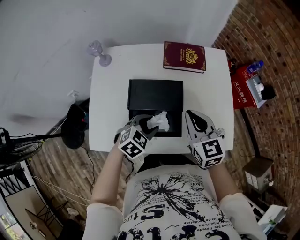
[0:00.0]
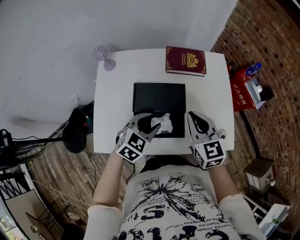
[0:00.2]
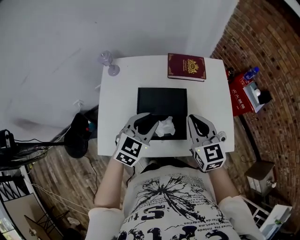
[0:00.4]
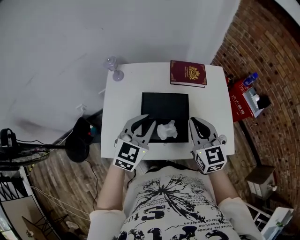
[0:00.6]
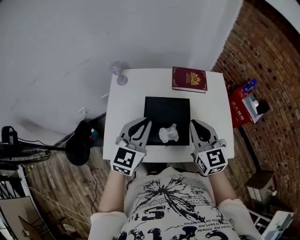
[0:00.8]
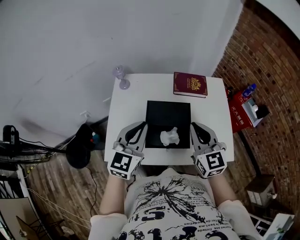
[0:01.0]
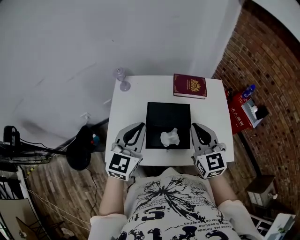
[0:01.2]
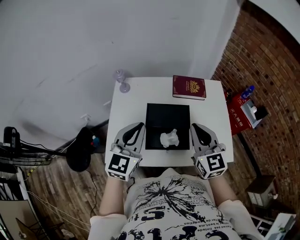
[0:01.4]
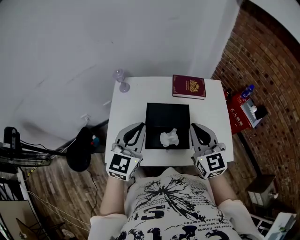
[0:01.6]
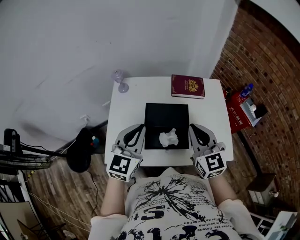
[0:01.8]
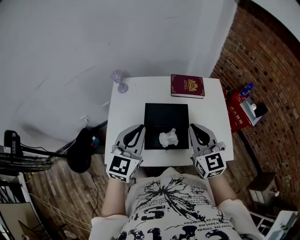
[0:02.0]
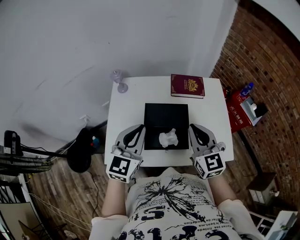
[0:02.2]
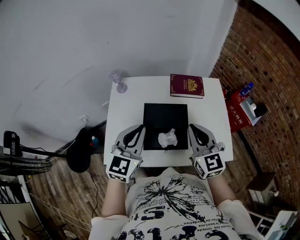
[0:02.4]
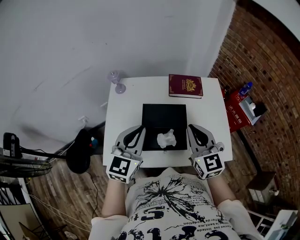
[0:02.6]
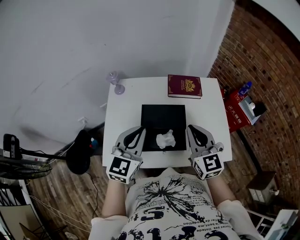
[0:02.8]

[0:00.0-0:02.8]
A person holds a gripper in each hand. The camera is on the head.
0:00.0 to 0:01.4: The left gripper travels upward and to the left by approximately 30 cm, angles its fingers upward, by approximately 40 degrees, and closes. Meanwhile the right gripper shifts roughly 15 cm upward and backward.
0:01.4 to 0:02.8: The grippers make only small movements.

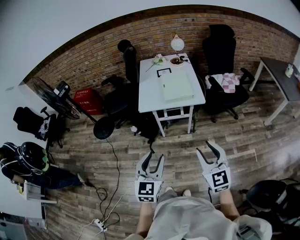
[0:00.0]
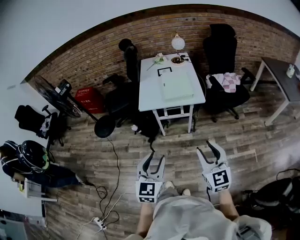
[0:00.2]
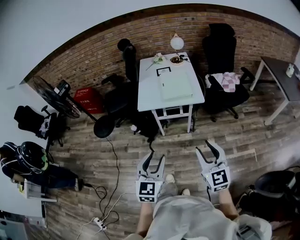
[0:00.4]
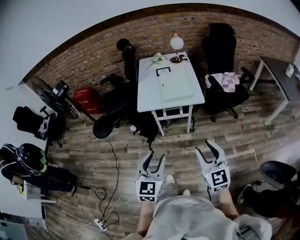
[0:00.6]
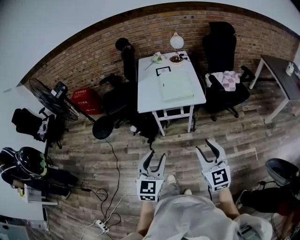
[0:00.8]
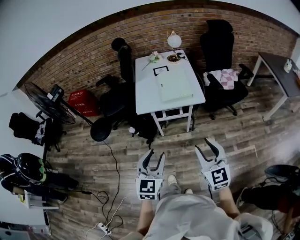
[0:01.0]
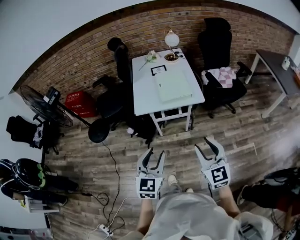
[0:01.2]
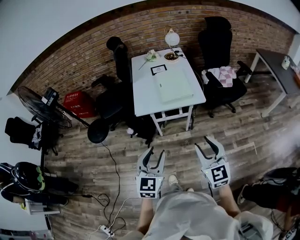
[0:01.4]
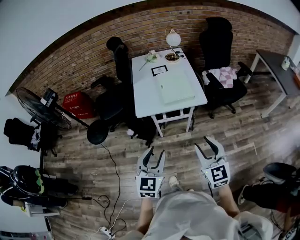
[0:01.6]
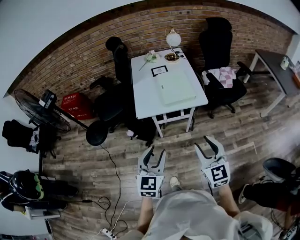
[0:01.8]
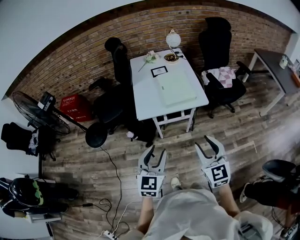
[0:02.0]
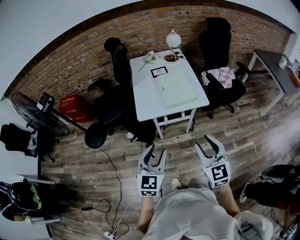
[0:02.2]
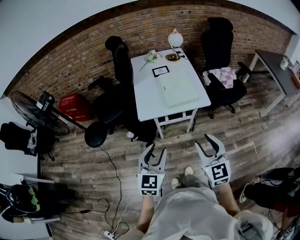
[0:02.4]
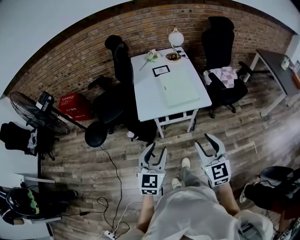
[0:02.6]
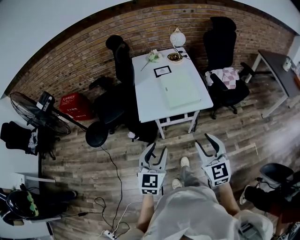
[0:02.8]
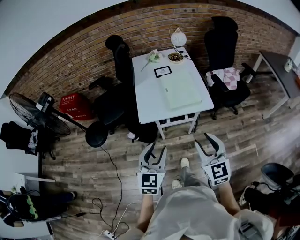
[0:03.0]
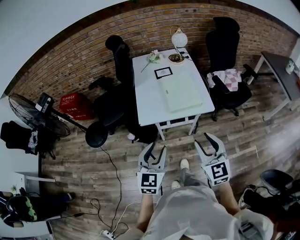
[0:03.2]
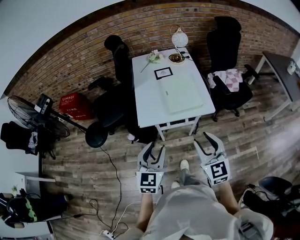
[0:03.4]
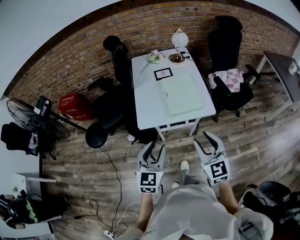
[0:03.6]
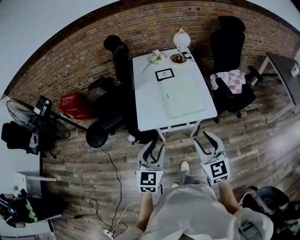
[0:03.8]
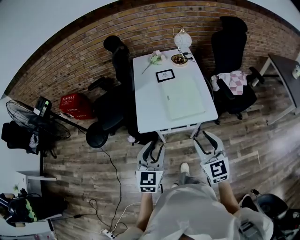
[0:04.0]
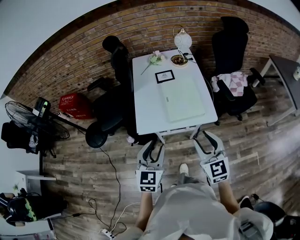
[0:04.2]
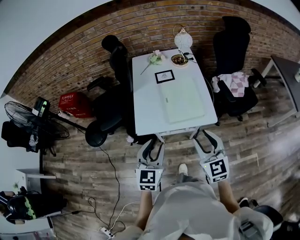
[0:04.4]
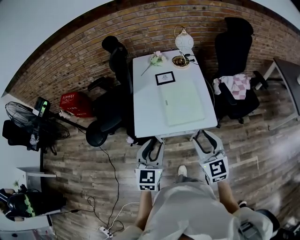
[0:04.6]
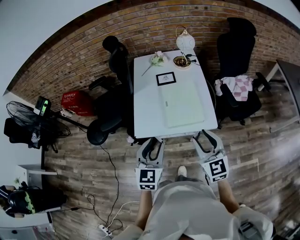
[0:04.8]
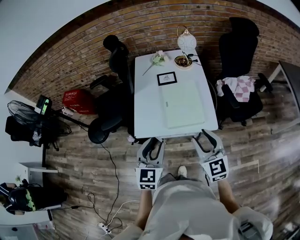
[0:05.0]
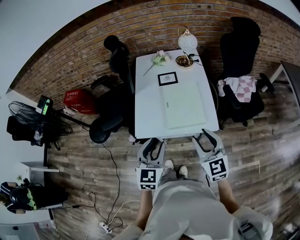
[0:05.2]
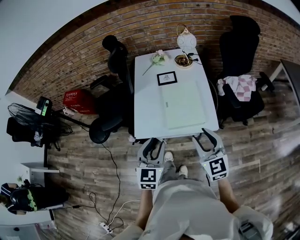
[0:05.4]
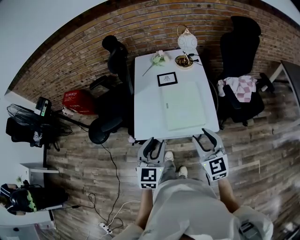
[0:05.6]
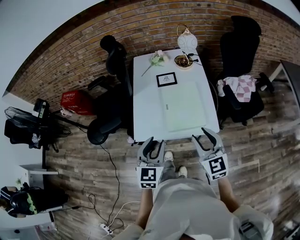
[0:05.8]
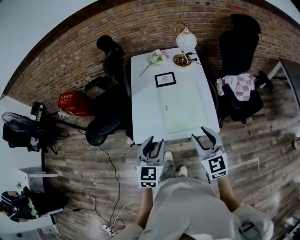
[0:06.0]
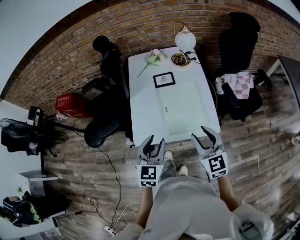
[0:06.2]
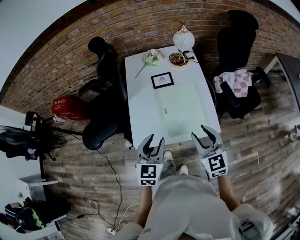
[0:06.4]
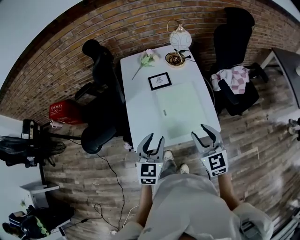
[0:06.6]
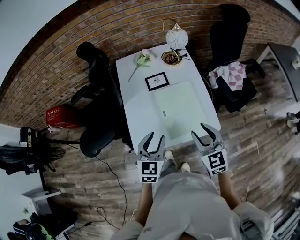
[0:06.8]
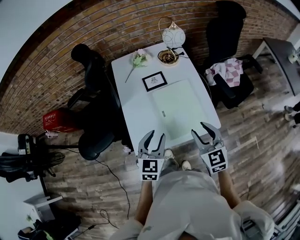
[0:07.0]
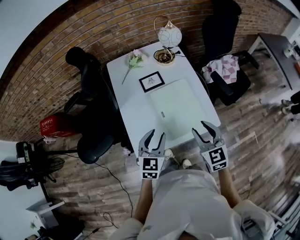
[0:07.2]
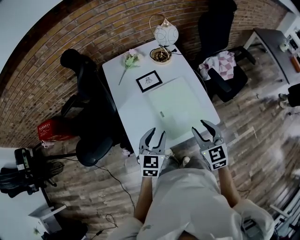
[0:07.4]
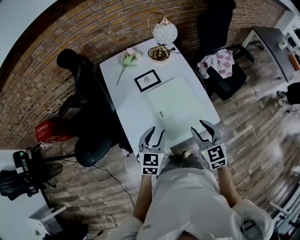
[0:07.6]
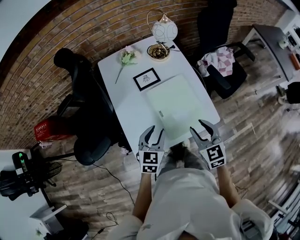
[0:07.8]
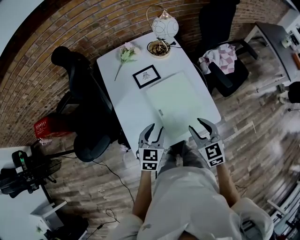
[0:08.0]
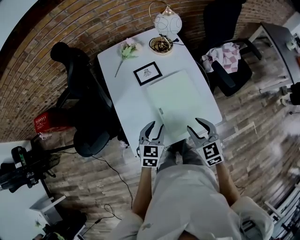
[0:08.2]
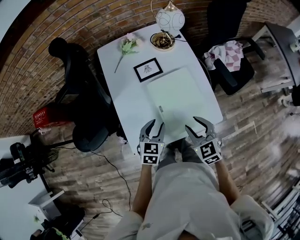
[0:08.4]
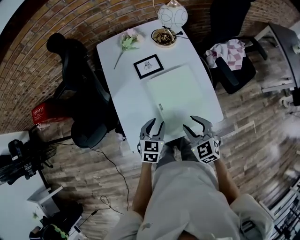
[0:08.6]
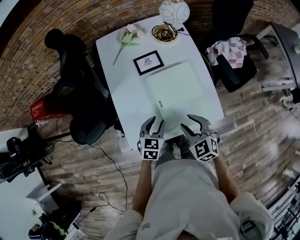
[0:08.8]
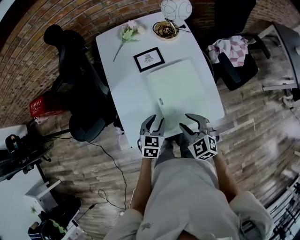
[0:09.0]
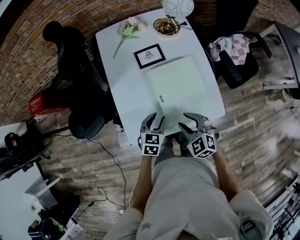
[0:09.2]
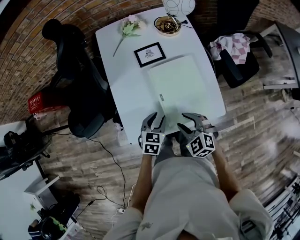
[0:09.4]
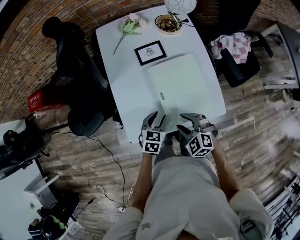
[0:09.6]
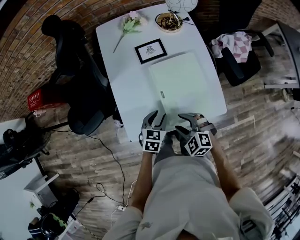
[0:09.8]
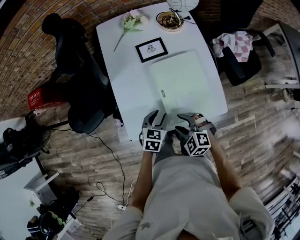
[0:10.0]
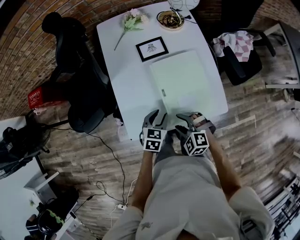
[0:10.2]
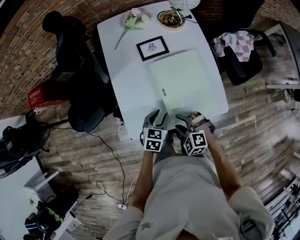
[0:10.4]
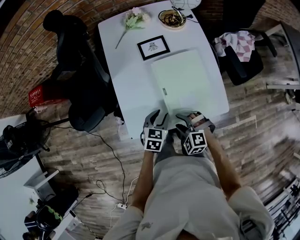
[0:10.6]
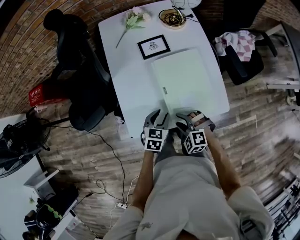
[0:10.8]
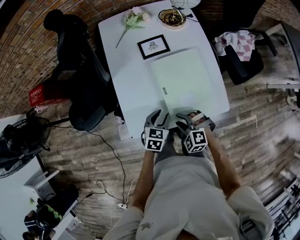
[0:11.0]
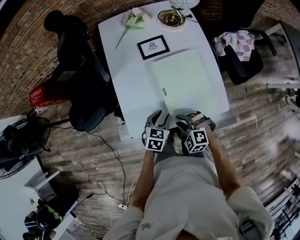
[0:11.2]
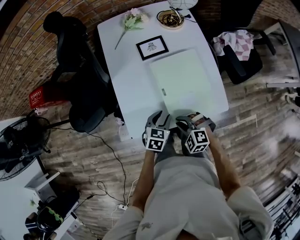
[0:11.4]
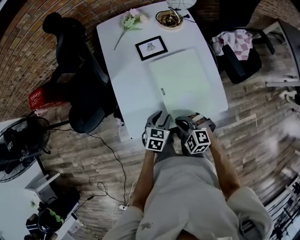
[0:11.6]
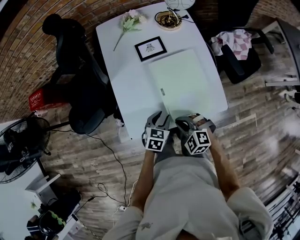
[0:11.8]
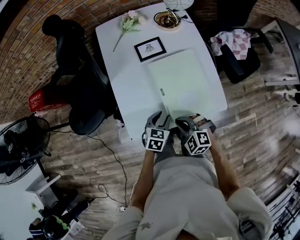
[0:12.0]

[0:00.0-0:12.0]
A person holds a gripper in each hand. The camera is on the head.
0:00.0 to 0:01.6: Both grippers move forward, some 10 cm.
0:01.6 to 0:03.0: The two grippers go some 10 cm forward.
0:03.0 to 0:04.4: Both grippers move forward, approximately 15 cm.
0:04.4 to 0:06.0: The two grippers go some 10 cm forward.
0:06.0 to 0:07.6: The right gripper moves forward and downward, about 10 cm, and rotates approximately 20 degrees; the left gripper is displaced forward and downward by approximately 15 cm, and turns by roughly 20 degrees.
0:07.6 to 0:09.0: The two grippers go some 10 cm downward. The right gripper rotates about 30 degrees.
0:09.0 to 0:10.4: The right gripper heads downward, covering approximately 10 cm, and turns by approximately 30 degrees.
0:10.4 to 0:12.0: The right gripper closes.

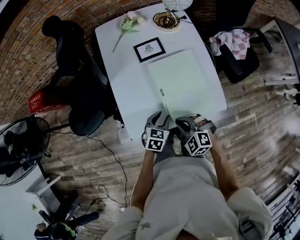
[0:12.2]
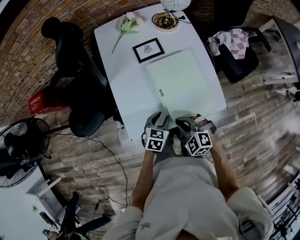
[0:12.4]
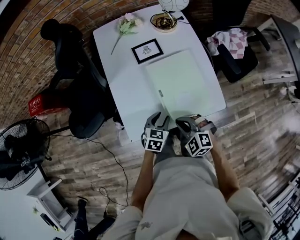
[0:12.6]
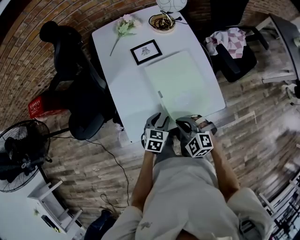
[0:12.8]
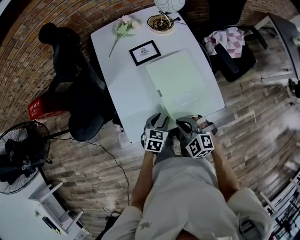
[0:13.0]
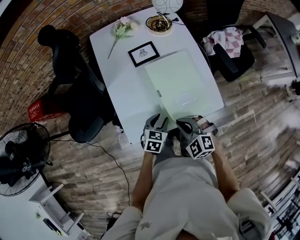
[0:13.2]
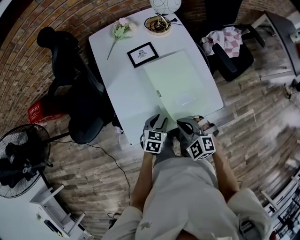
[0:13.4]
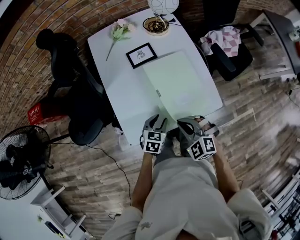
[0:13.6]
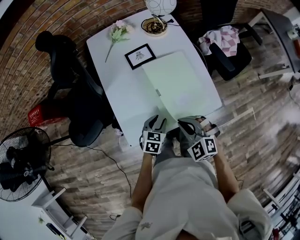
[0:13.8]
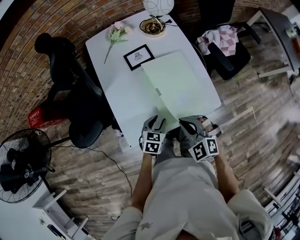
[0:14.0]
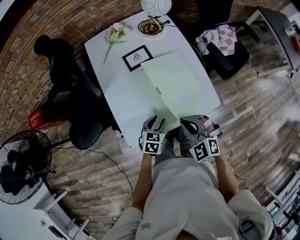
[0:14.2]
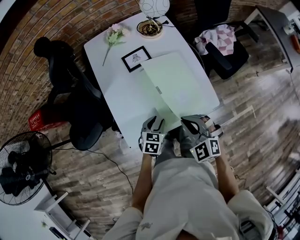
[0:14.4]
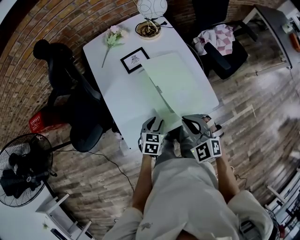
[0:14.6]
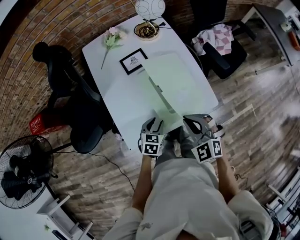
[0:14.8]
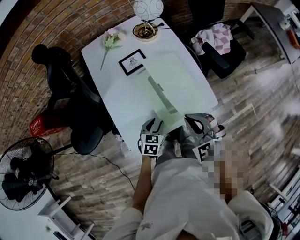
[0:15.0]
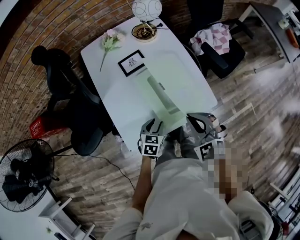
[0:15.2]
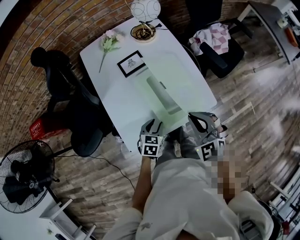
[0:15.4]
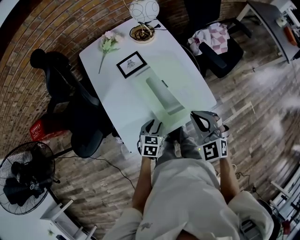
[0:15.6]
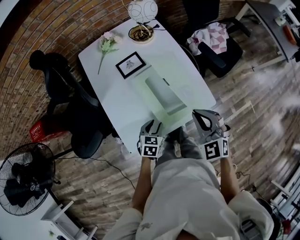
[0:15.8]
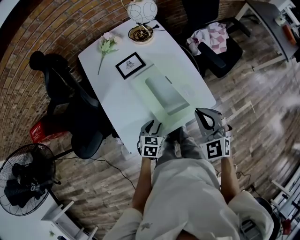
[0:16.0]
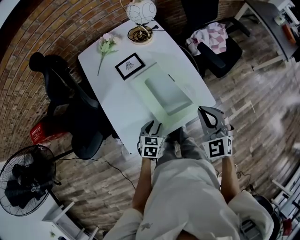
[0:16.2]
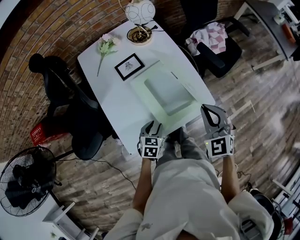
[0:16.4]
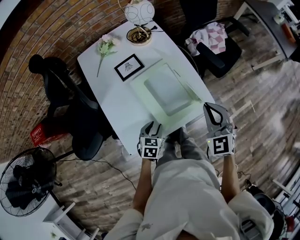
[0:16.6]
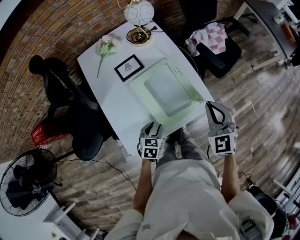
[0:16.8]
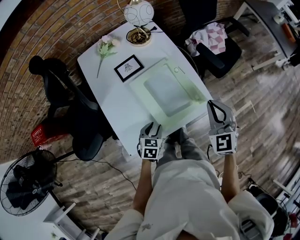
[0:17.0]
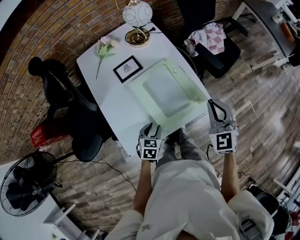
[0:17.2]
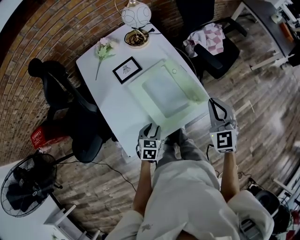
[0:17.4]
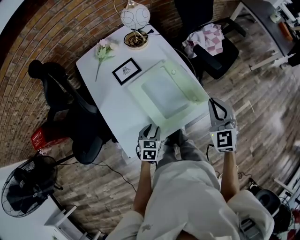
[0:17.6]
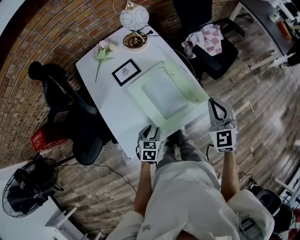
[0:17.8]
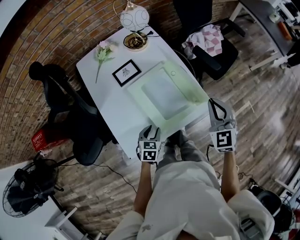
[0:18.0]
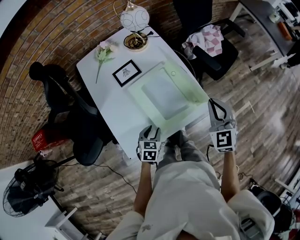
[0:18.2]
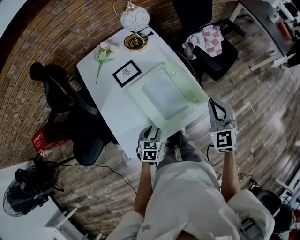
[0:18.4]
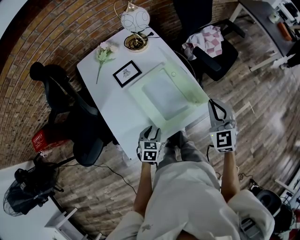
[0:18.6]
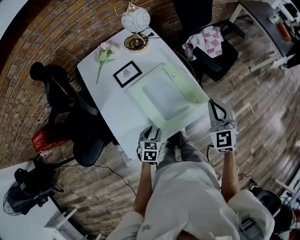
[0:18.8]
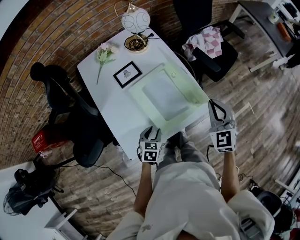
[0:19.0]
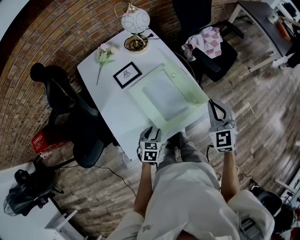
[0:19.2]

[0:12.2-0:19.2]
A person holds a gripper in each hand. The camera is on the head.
0:12.2 to 0:13.6: The right gripper shifts roughly 5 cm upward.
0:13.6 to 0:15.0: The right gripper is displaced upward by roughly 5 cm.
0:15.0 to 0:16.4: The right gripper is displaced to the right by some 10 cm.
0:16.4 to 0:17.8: The right gripper heads to the right, covering about 5 cm.
0:17.8 to 0:19.2: Neither gripper changes place.

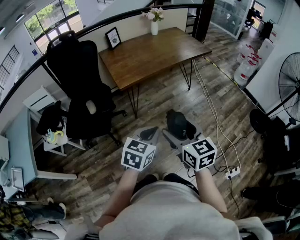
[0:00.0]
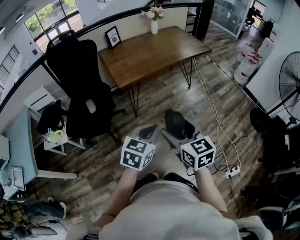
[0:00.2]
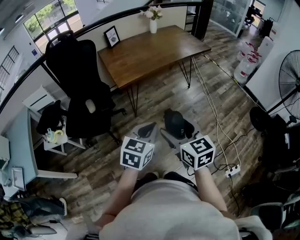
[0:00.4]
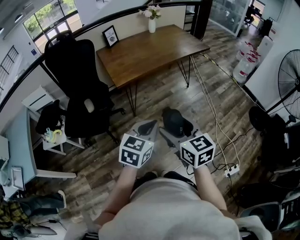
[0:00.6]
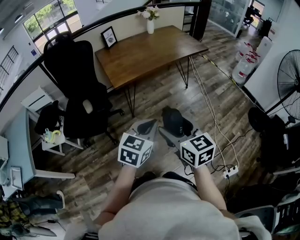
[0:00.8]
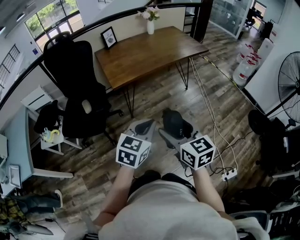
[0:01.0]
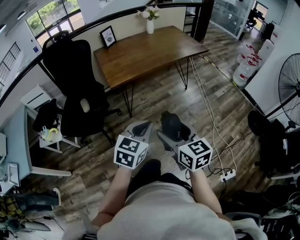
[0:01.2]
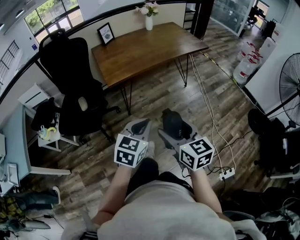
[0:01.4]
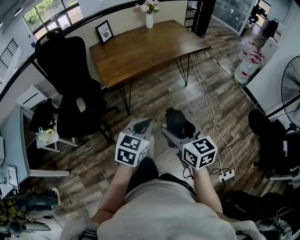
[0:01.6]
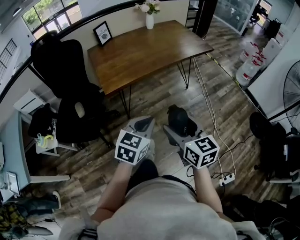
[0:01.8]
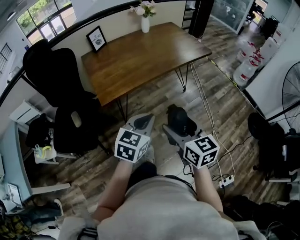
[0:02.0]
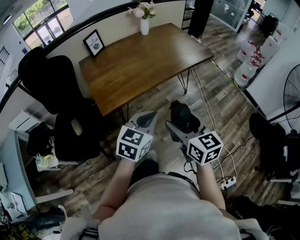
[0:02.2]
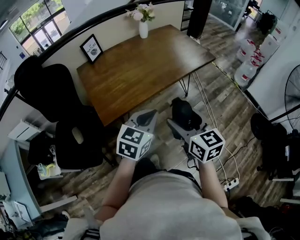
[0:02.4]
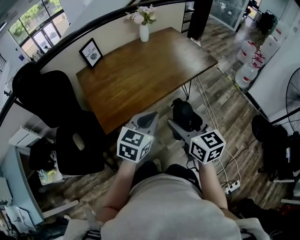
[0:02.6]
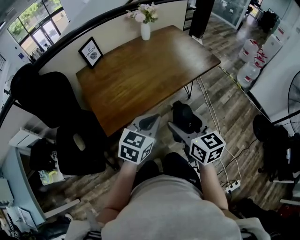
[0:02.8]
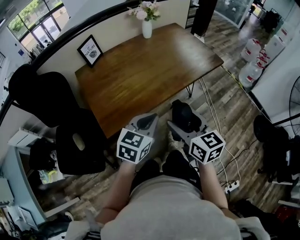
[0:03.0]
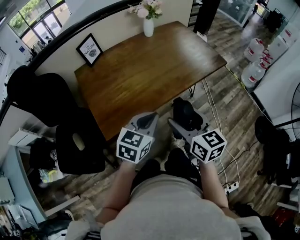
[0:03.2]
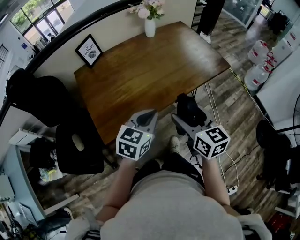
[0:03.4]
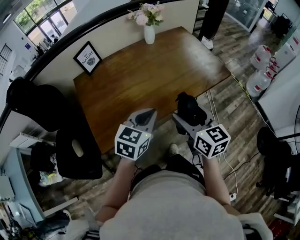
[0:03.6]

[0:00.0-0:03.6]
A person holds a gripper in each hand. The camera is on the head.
0:00.0 to 0:01.8: The left gripper moves forward, some 15 cm. Meanwhile the right gripper travels forward and to the right by approximately 15 cm.
0:01.8 to 0:03.6: Both grippers travel together forward, approximately 40 cm.
